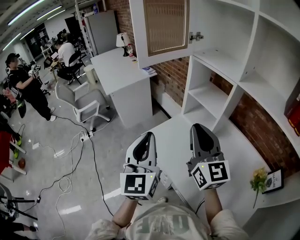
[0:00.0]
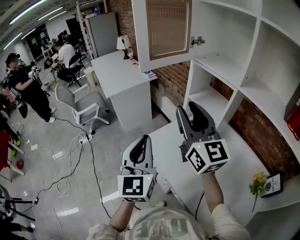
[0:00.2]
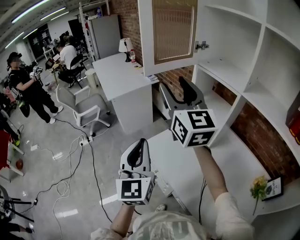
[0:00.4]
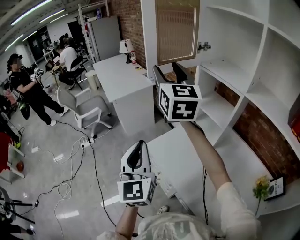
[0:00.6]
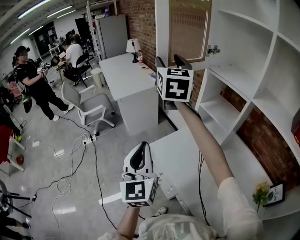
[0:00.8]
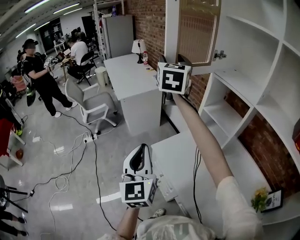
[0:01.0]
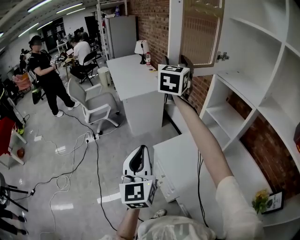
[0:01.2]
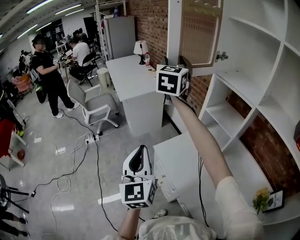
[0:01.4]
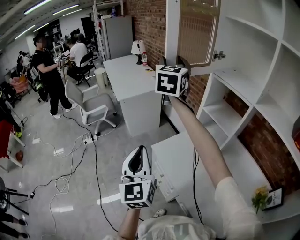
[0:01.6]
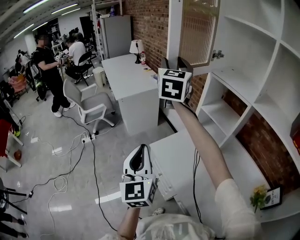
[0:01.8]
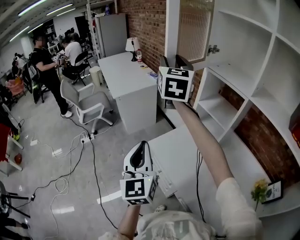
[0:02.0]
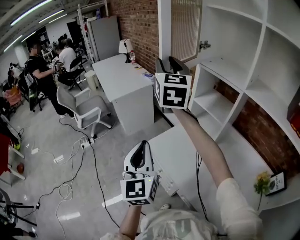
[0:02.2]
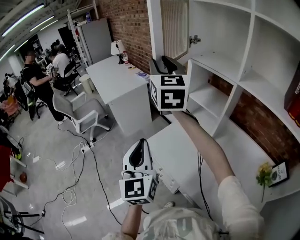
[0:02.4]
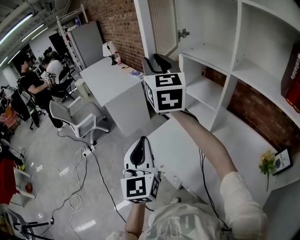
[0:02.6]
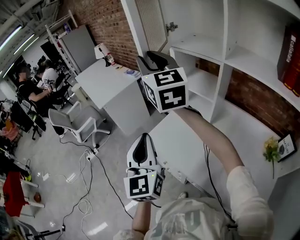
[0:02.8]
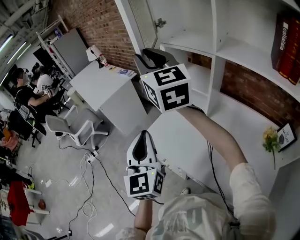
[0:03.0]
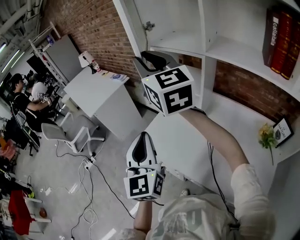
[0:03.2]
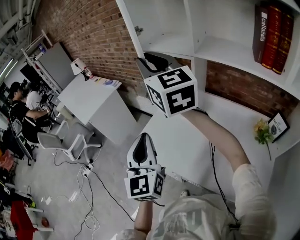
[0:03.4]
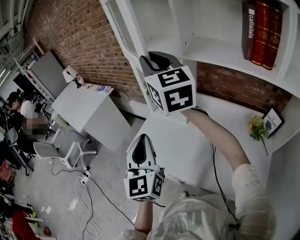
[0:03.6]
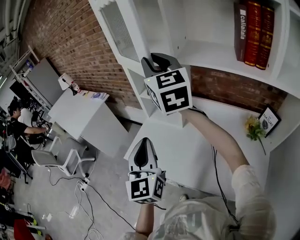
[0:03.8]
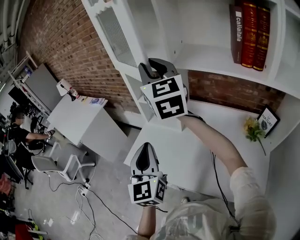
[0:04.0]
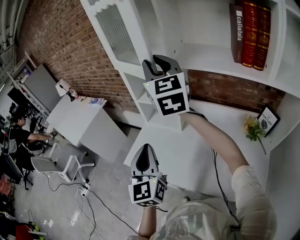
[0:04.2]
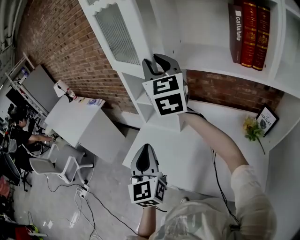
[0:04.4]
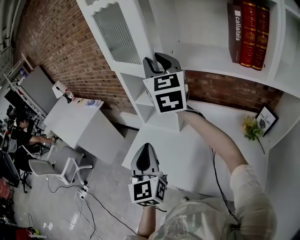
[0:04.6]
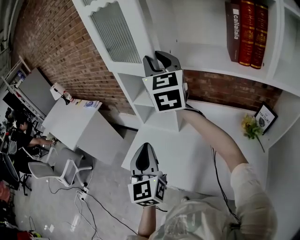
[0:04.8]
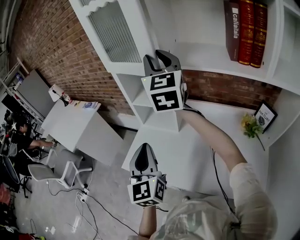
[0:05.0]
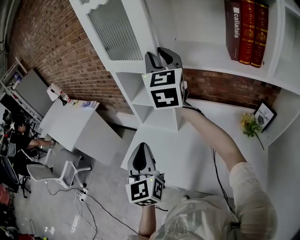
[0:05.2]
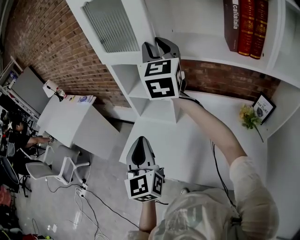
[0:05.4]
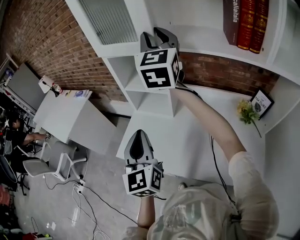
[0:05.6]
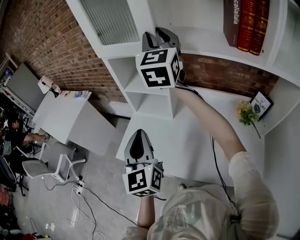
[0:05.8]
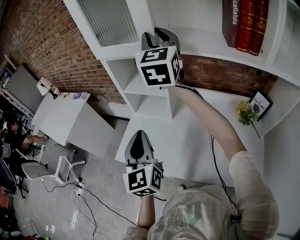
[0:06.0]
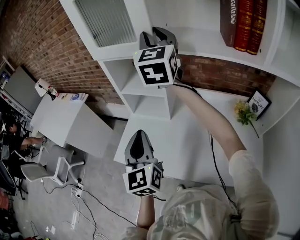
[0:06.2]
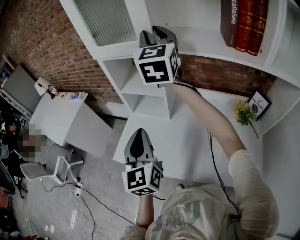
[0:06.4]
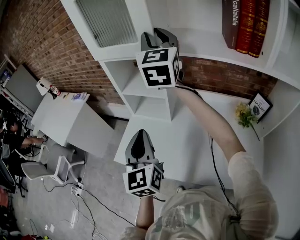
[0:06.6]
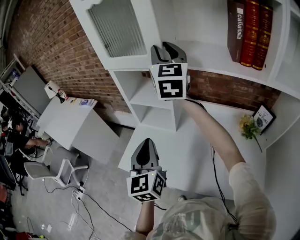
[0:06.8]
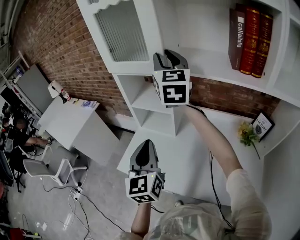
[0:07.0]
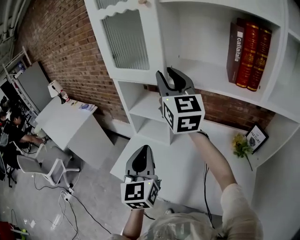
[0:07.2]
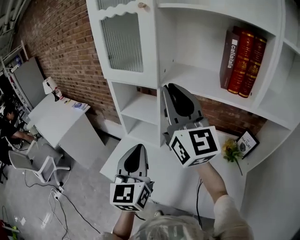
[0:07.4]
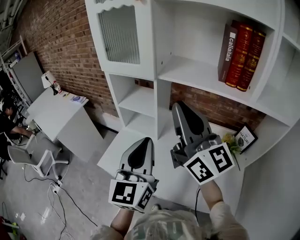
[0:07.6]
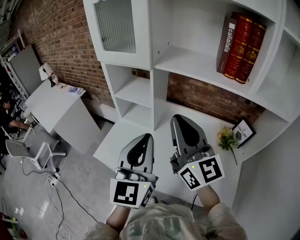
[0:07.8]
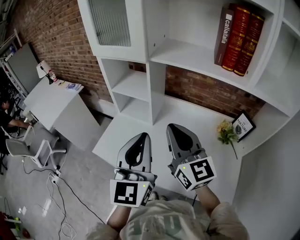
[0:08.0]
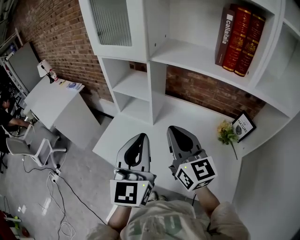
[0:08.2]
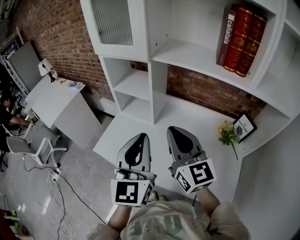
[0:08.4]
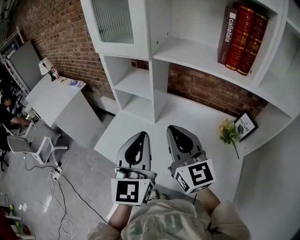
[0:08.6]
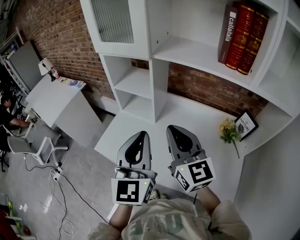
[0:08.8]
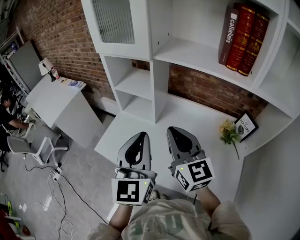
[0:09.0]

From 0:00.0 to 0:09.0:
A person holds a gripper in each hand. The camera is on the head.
From 0:00.0 to 0:01.6: The left gripper goes about 10 cm to the left, while the right gripper is displaced forward, to the left and upward by approximately 35 cm, and opens its fingers.
From 0:01.6 to 0:03.0: The right gripper moves backward and to the right, roughly 15 cm, and closes its fingers. Meanwhile the left gripper shifts some 10 cm to the right.
From 0:03.0 to 0:04.4: The left gripper goes approximately 10 cm to the right; the right gripper travels to the right by approximately 20 cm, and changes its angle by approximately 30 degrees.
From 0:04.4 to 0:06.0: The right gripper goes about 5 cm forward.
From 0:06.0 to 0:07.6: The left gripper heads to the right and upward, covering approximately 15 cm; the right gripper is displaced backward by roughly 20 cm, swivels approximately 40 degrees, and closes its fingers.
From 0:07.6 to 0:09.0: The right gripper travels downward by roughly 15 cm, and swivels approximately 20 degrees.

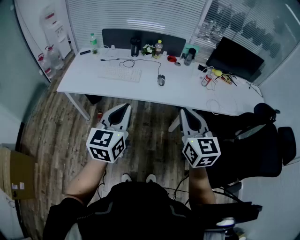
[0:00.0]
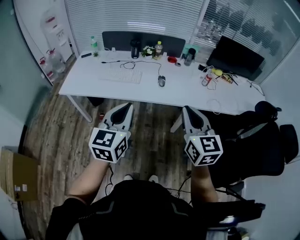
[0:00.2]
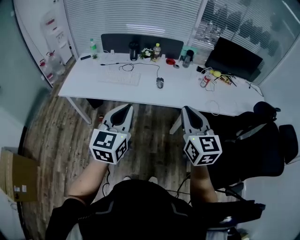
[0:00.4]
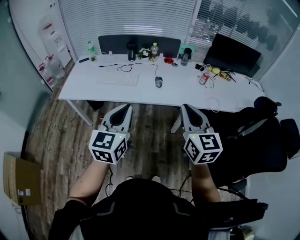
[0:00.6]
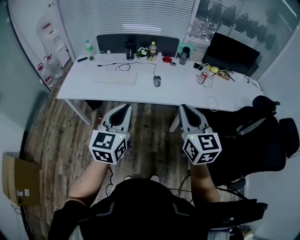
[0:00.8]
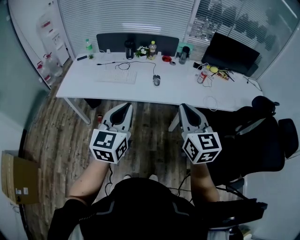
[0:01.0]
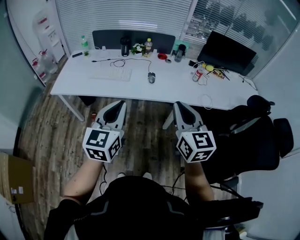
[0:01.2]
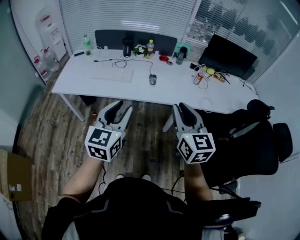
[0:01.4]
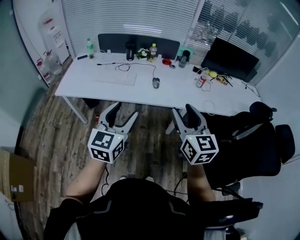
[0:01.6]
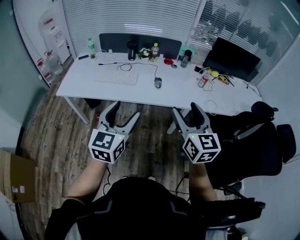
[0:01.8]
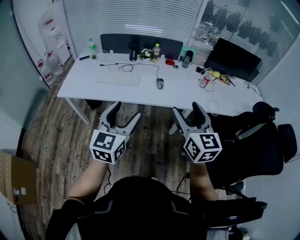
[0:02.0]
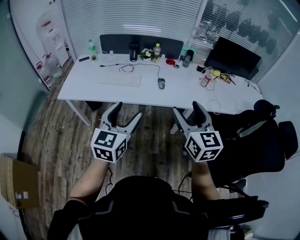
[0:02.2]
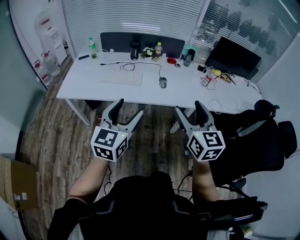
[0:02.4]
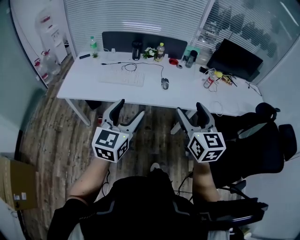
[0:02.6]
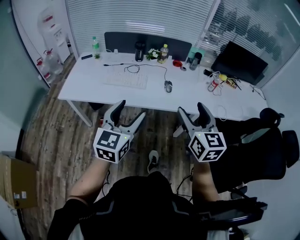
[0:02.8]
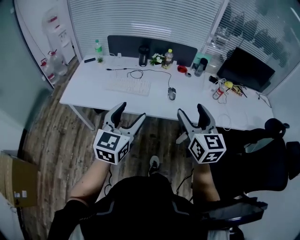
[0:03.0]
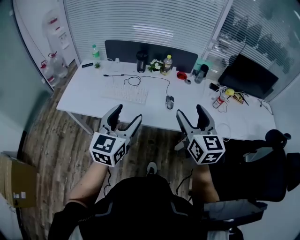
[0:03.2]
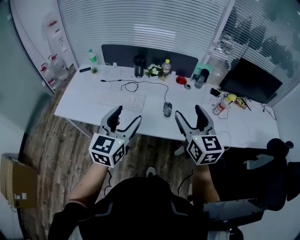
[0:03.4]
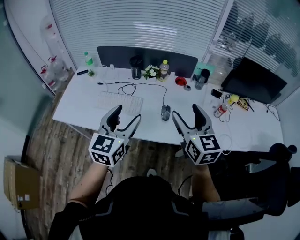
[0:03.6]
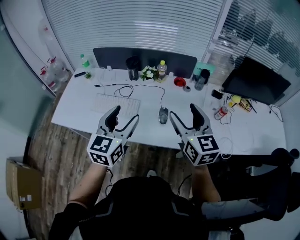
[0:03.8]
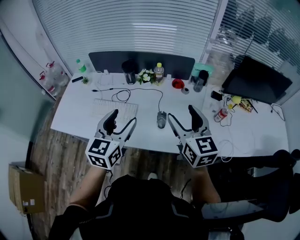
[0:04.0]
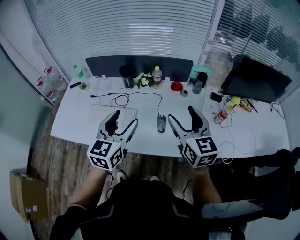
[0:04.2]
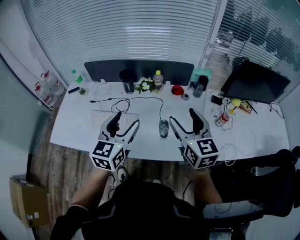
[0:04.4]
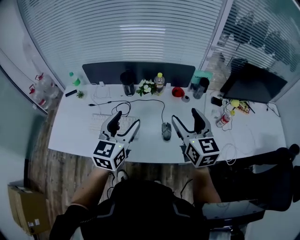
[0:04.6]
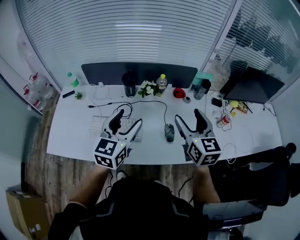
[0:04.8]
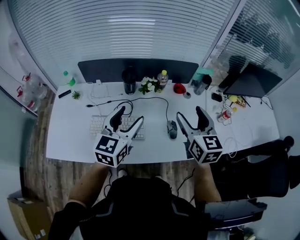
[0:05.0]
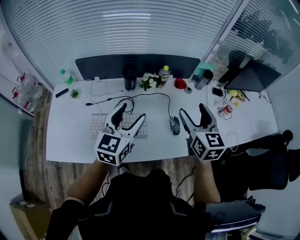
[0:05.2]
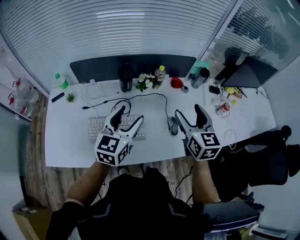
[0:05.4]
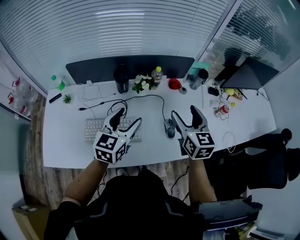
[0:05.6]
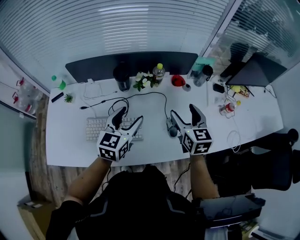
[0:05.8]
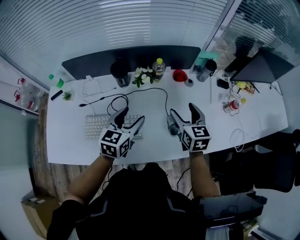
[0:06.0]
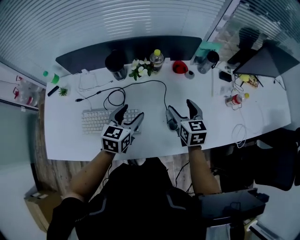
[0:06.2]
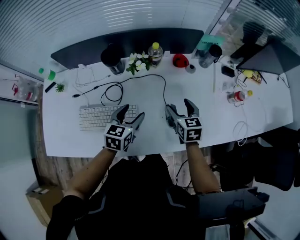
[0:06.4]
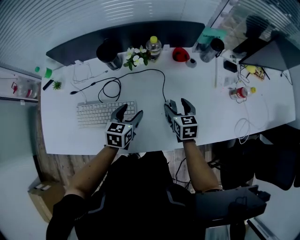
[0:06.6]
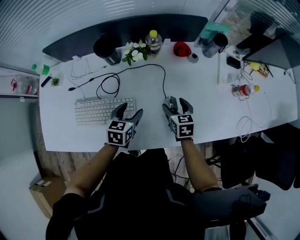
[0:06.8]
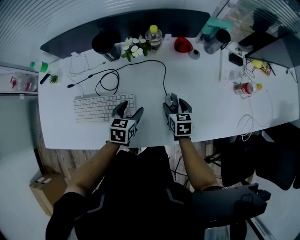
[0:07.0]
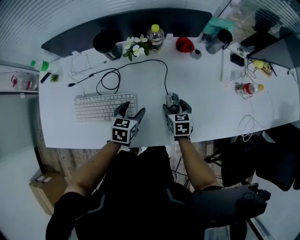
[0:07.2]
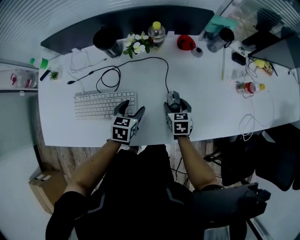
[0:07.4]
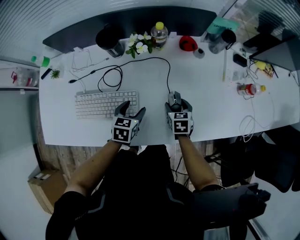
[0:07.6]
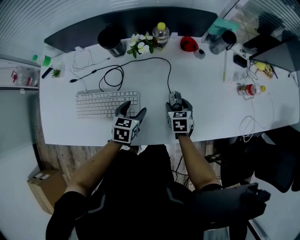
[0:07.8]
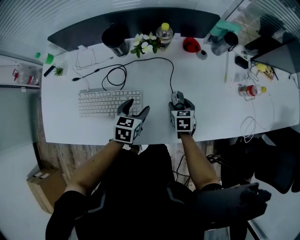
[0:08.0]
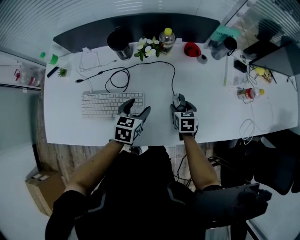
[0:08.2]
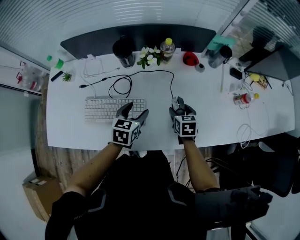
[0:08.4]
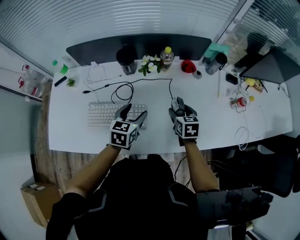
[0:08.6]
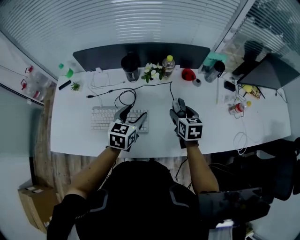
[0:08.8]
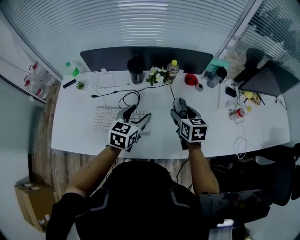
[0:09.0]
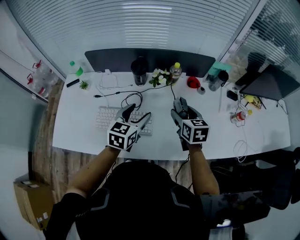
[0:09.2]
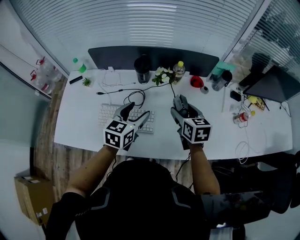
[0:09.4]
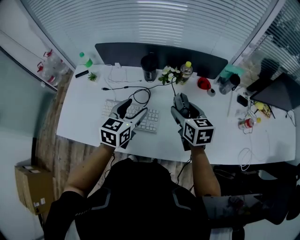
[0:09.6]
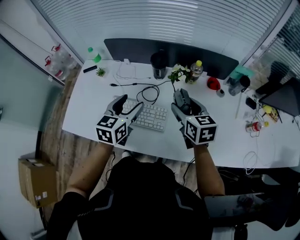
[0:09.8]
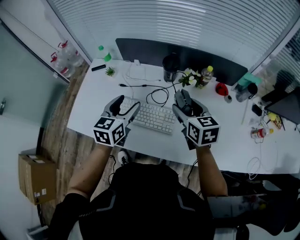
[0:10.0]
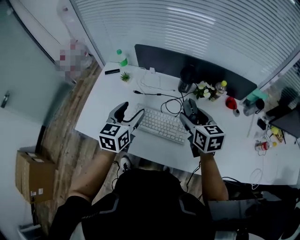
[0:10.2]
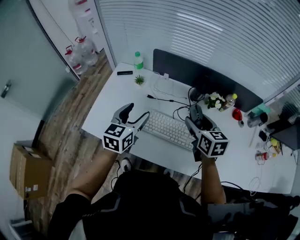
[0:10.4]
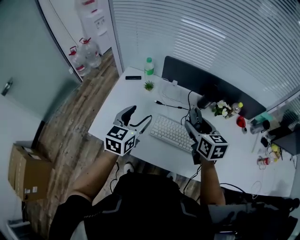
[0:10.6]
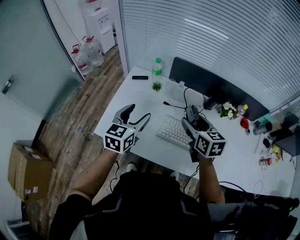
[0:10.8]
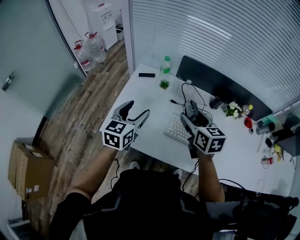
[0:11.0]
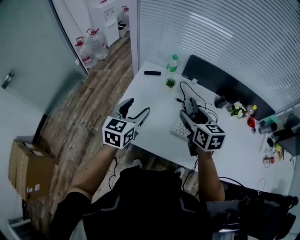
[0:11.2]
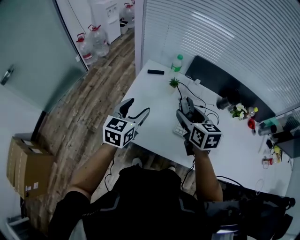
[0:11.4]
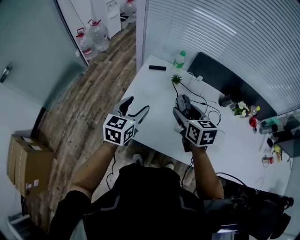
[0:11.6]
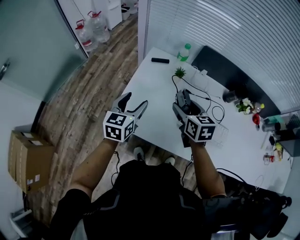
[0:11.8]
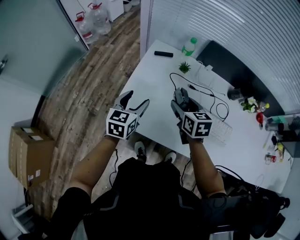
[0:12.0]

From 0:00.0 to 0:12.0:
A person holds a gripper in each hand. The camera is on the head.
From 0:00.0 to 0:01.6: The right gripper opens up, while the left gripper opens.
From 0:01.6 to 0:03.0: Both grippers move forward and to the left, roughly 15 cm.
From 0:03.0 to 0:04.4: The grippers both shift forward by about 30 cm.
From 0:04.4 to 0:06.0: The left gripper moves downward, forward and to the left, approximately 20 cm, and turns by some 20 degrees. Meanwhile the right gripper shifts roughly 20 cm downward and forward, and rotates some 20 degrees.
From 0:06.0 to 0:07.6: The grippers both shift downward by some 20 cm. The right gripper changes its angle by some 30 degrees. Meanwhile the left gripper changes its angle by about 30 degrees.
From 0:07.6 to 0:09.0: Both grippers travel together upward, approximately 20 cm. The left gripper turns by some 20 degrees.
From 0:09.0 to 0:10.4: Both grippers move to the left, roughly 25 cm. The left gripper rotates some 20 degrees.
From 0:10.4 to 0:12.0: The left gripper is displaced to the left and downward by approximately 30 cm; the right gripper moves to the left, roughly 30 cm.

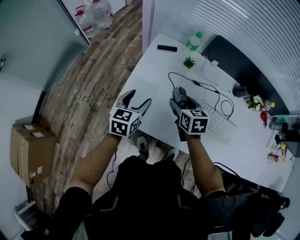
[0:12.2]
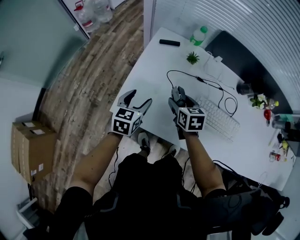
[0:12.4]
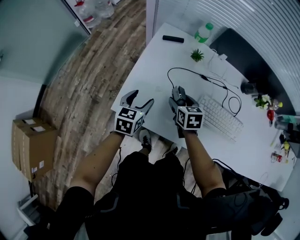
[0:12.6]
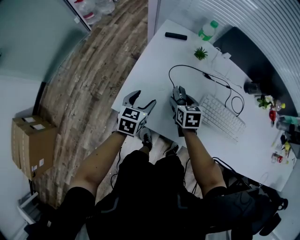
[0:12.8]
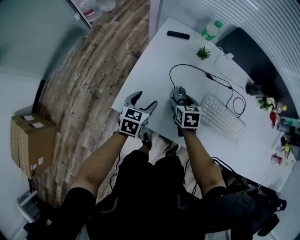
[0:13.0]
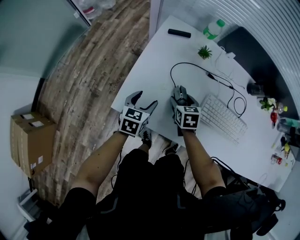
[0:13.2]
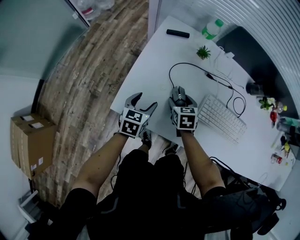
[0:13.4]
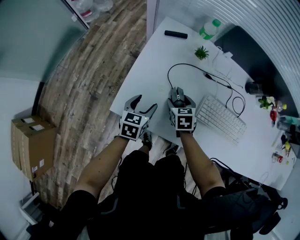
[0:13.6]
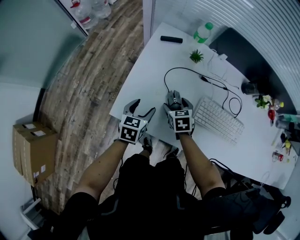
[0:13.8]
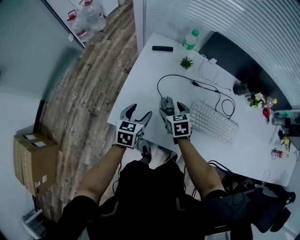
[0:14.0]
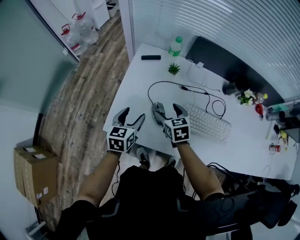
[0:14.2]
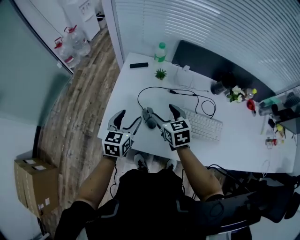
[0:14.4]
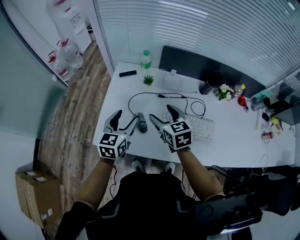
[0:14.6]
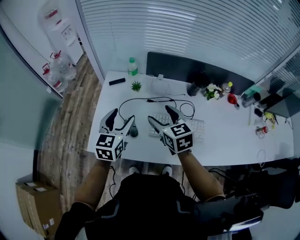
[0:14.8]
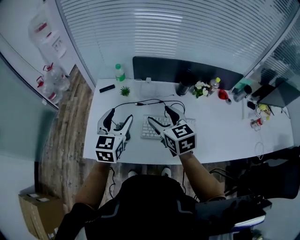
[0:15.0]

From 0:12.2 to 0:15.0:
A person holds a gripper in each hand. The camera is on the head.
From 0:12.2 to 0:13.6: Both grippers move downward, approximately 10 cm.
From 0:13.6 to 0:15.0: Both grippers move upward and to the right, some 35 cm. The left gripper rotates roughly 30 degrees. Meanwhile the right gripper rotates about 30 degrees.
